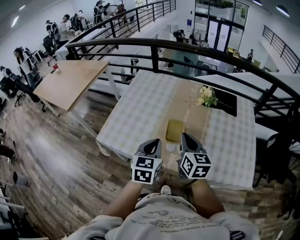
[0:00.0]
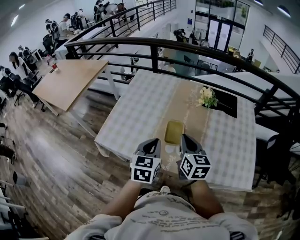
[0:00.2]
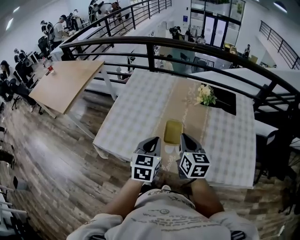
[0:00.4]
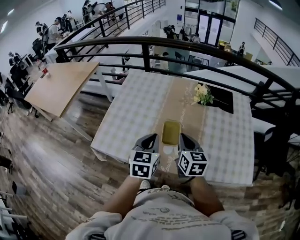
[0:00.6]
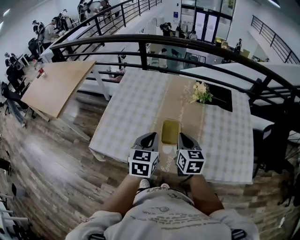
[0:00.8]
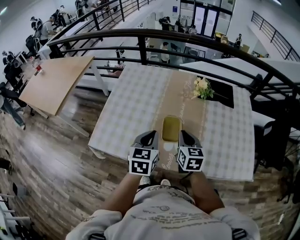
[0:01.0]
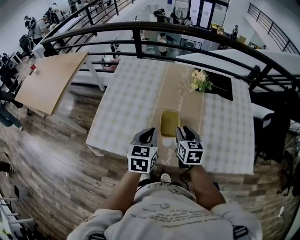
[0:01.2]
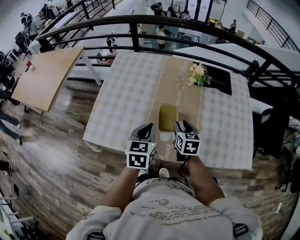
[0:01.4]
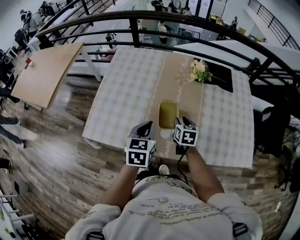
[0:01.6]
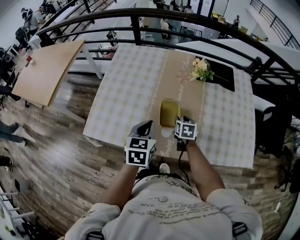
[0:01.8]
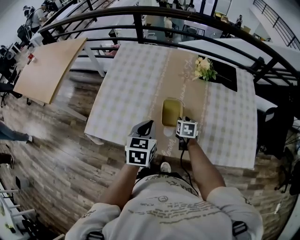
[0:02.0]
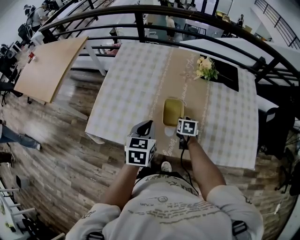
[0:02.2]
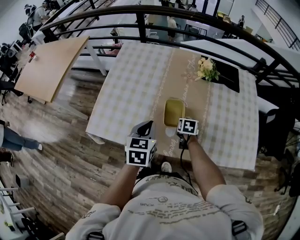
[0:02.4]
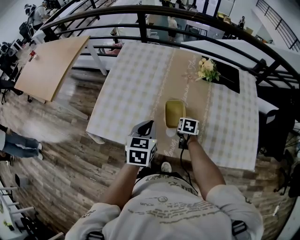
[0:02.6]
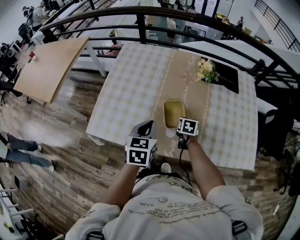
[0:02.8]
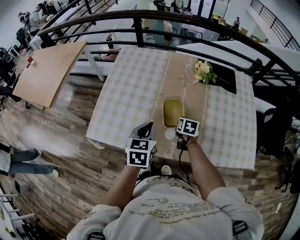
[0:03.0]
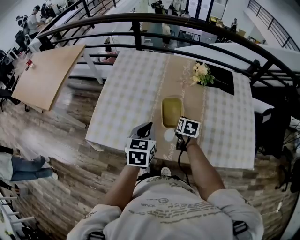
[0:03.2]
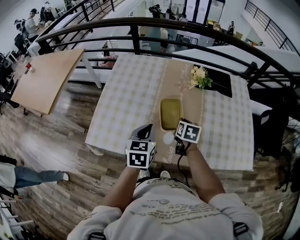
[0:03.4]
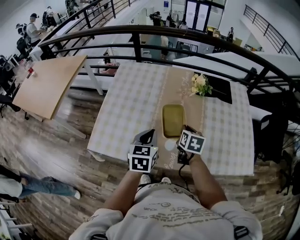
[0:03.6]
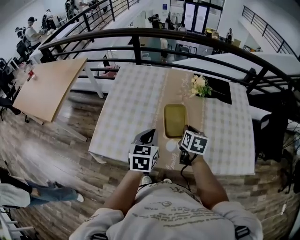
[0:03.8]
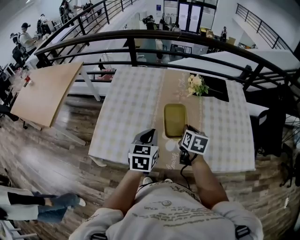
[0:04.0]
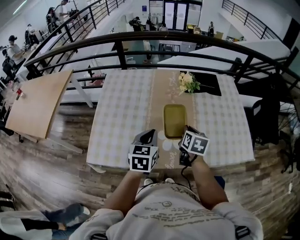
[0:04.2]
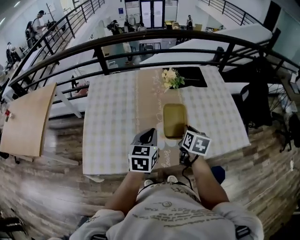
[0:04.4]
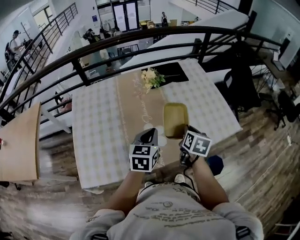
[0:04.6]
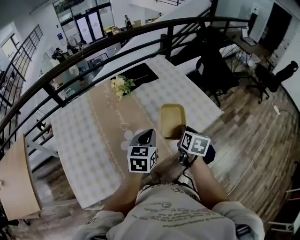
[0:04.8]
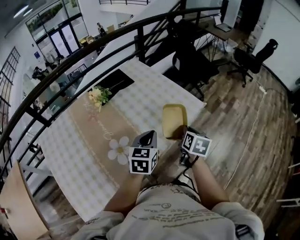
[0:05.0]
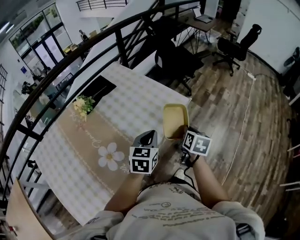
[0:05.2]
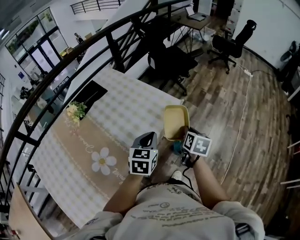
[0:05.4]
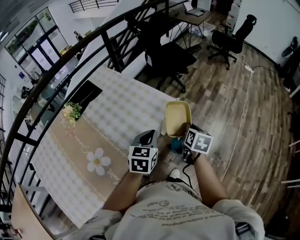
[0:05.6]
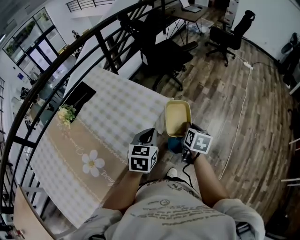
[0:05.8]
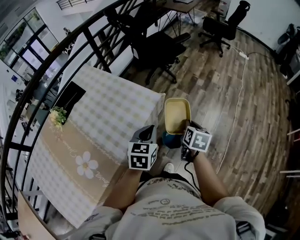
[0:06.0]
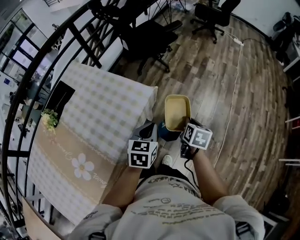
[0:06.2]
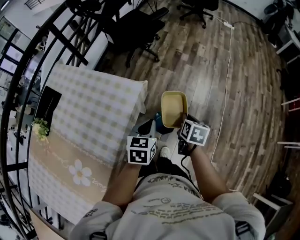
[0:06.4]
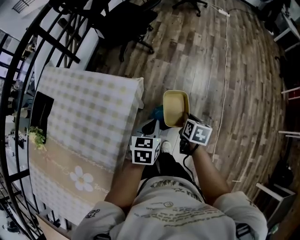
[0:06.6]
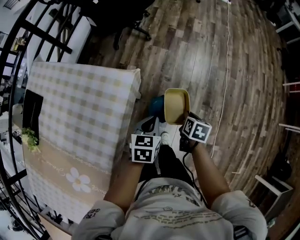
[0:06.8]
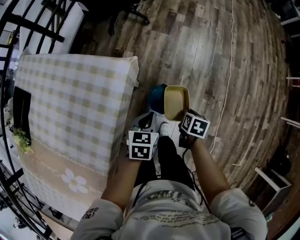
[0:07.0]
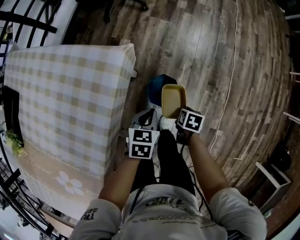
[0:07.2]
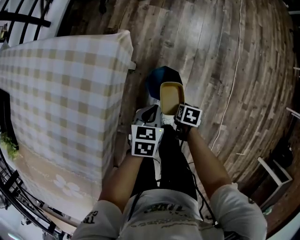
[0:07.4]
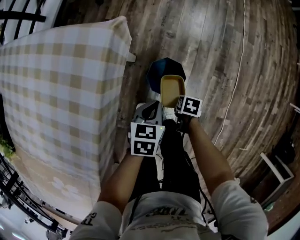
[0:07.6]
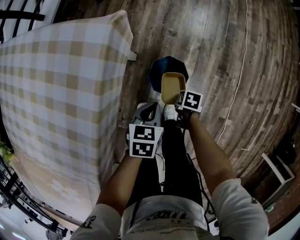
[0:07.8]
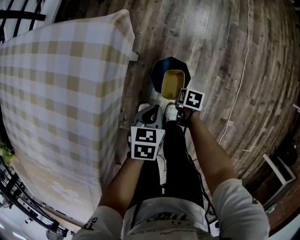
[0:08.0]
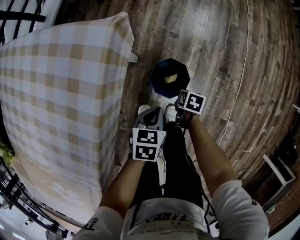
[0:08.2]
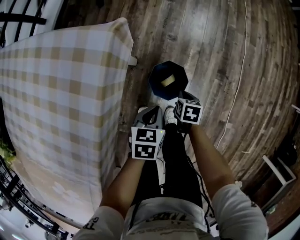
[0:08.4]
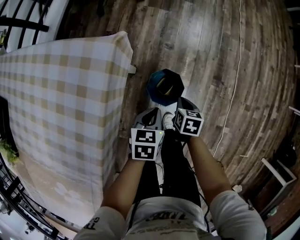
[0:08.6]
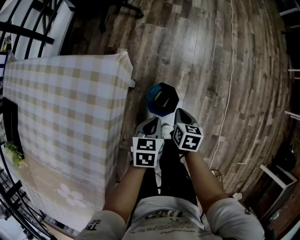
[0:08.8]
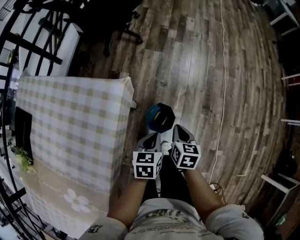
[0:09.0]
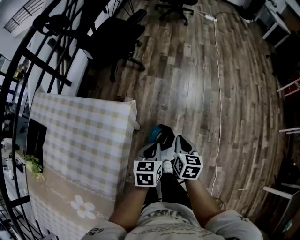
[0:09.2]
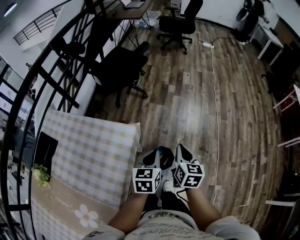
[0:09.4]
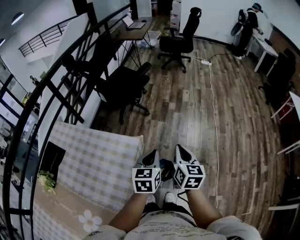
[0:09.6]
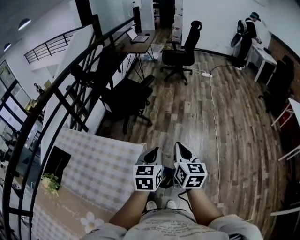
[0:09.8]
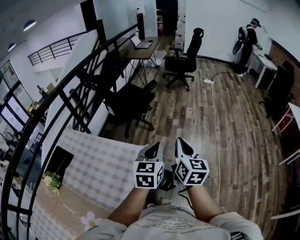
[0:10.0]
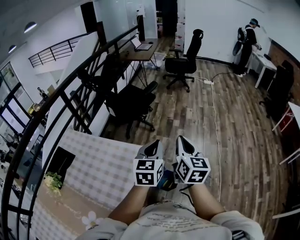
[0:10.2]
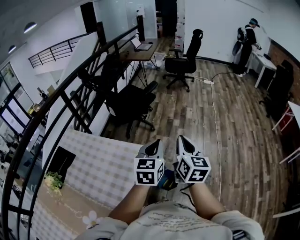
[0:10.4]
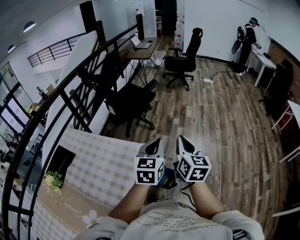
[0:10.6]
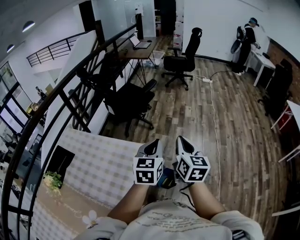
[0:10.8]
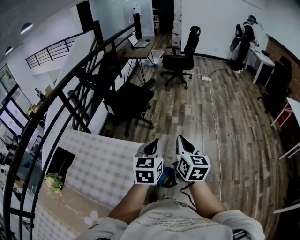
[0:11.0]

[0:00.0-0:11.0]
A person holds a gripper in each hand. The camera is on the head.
0:00.0 to 0:01.6: The left gripper heads forward and downward, covering about 10 cm, while the right gripper travels downward and forward by approximately 25 cm, rotates about 30 degrees, and opens its fingers.
0:01.6 to 0:03.2: The right gripper reaches some 10 cm downward, then returns, and closes its fingers.
0:03.2 to 0:04.8: The right gripper moves roughly 30 cm, and swivels some 50 degrees, while the left gripper ends up roughly 20 cm from where it was, and rotates roughly 40 degrees.
0:04.8 to 0:06.2: The two grippers travel together, about 40 cm. The left gripper turns by some 30 degrees, while the right gripper changes its angle by about 30 degrees.
0:06.2 to 0:07.8: Both grippers travel together downward, some 40 cm. The left gripper swivels roughly 30 degrees. The right gripper tilts its fingers roughly 30 degrees downward.
0:07.8 to 0:09.4: Both grippers travel together upward, roughly 50 cm. The right gripper tilts its fingers about 50 degrees upward, while the left gripper rotates about 20 degrees.
0:09.4 to 0:11.0: The grippers both shift forward by roughly 20 cm. The right gripper rotates roughly 20 degrees. The left gripper swivels about 20 degrees.

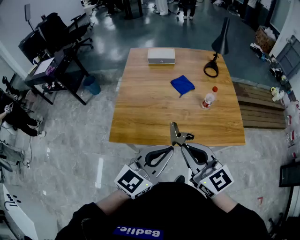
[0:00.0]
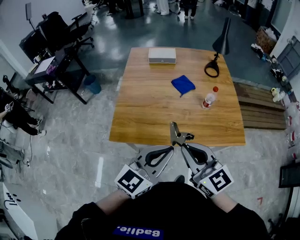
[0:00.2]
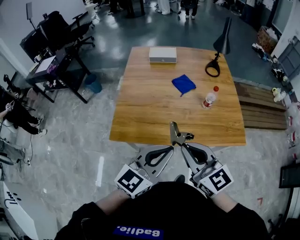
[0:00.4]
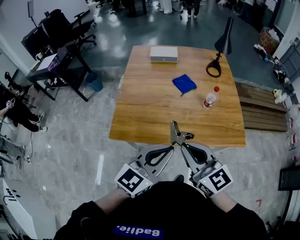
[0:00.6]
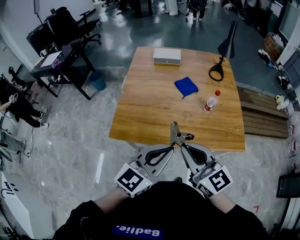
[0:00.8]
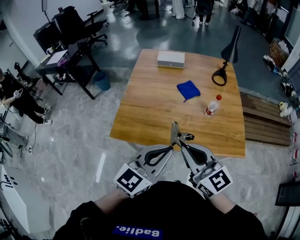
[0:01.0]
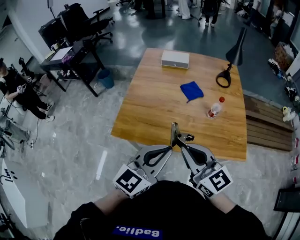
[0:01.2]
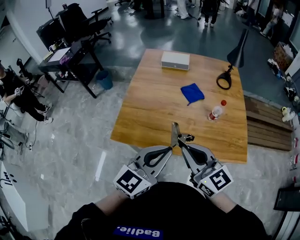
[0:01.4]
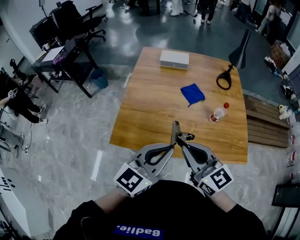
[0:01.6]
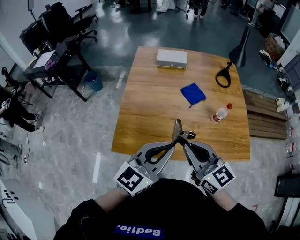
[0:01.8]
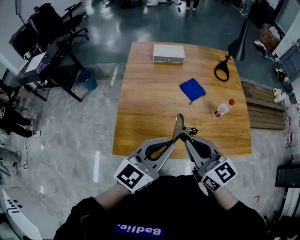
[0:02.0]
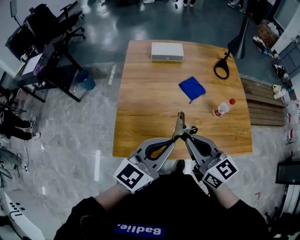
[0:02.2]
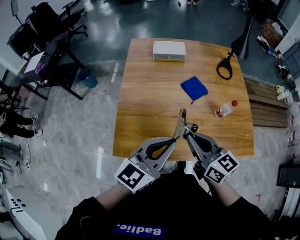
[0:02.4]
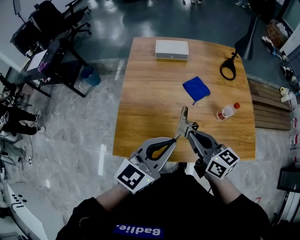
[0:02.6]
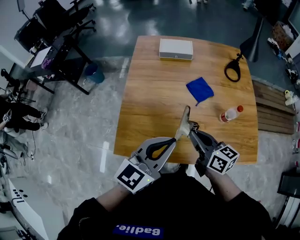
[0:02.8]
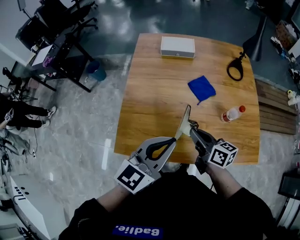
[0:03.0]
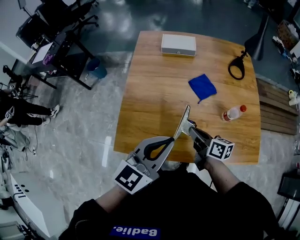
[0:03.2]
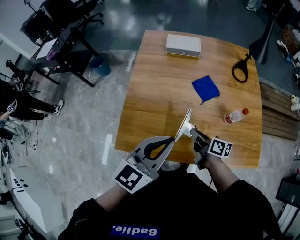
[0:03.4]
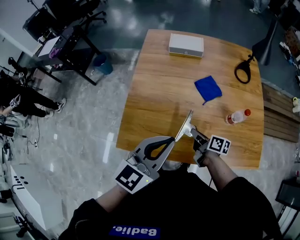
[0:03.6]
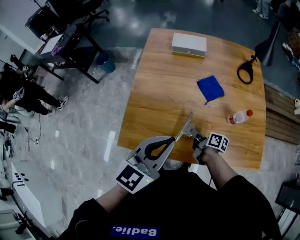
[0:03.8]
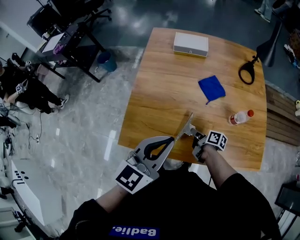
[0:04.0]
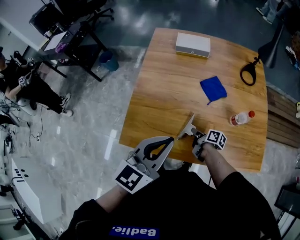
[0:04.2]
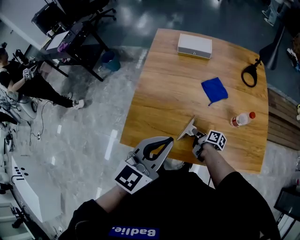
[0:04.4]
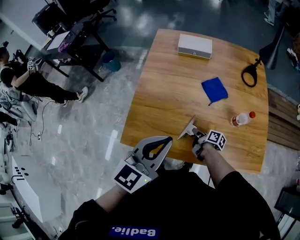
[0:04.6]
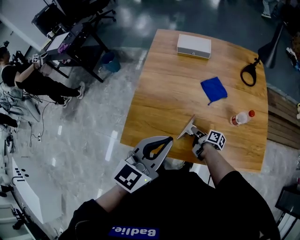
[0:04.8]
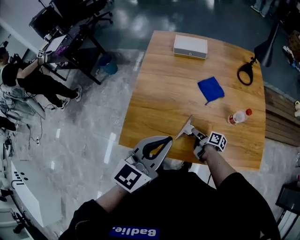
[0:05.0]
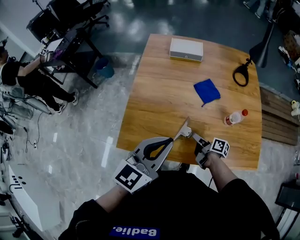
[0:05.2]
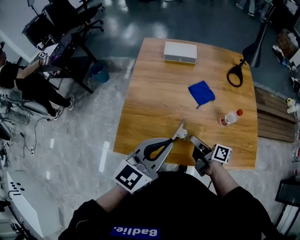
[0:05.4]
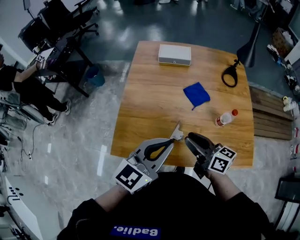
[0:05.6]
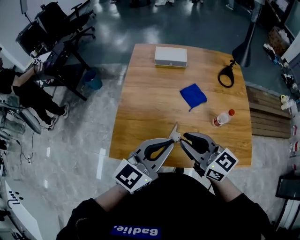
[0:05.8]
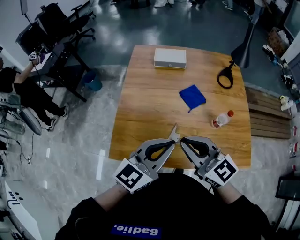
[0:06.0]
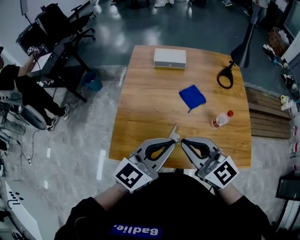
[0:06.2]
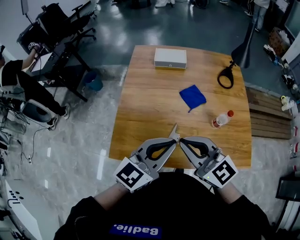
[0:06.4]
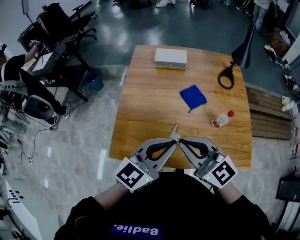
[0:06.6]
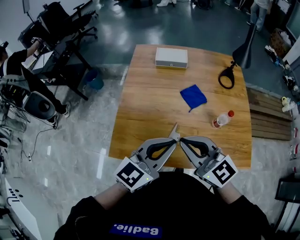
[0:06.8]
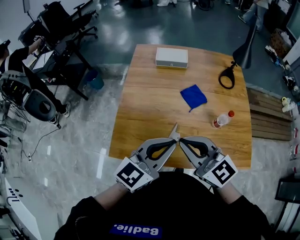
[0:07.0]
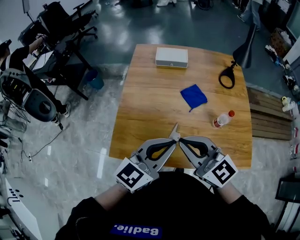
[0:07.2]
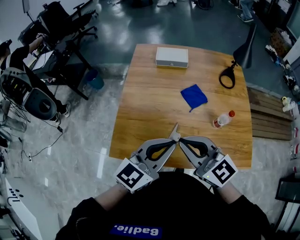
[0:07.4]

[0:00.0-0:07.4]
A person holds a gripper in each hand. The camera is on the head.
0:00.0 to 0:01.4: There are only small adjustments of the grippers.
0:01.4 to 0:03.0: The left gripper moves forward, approximately 15 cm; the right gripper moves forward and downward, approximately 25 cm, and changes its angle by roughly 40 degrees.
0:03.0 to 0:04.4: The right gripper is displaced downward by roughly 25 cm, and changes its angle by some 40 degrees.
0:04.4 to 0:06.0: The left gripper heads to the right, covering roughly 5 cm. Meanwhile the right gripper moves upward, roughly 40 cm, rolls counterclockwise, seen from behind, by approximately 80 degrees, and opens, then closes again.
0:06.0 to 0:07.4: The grippers move only a little.

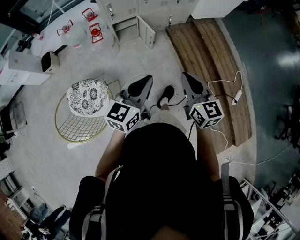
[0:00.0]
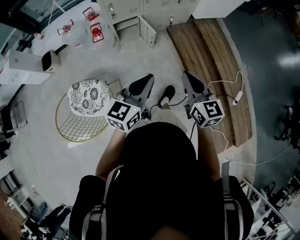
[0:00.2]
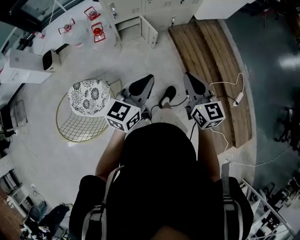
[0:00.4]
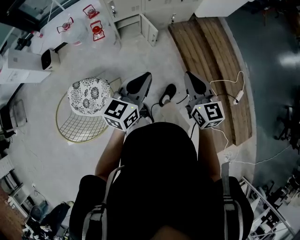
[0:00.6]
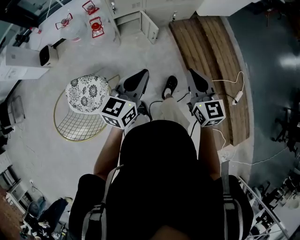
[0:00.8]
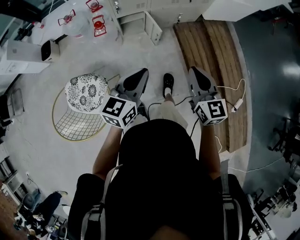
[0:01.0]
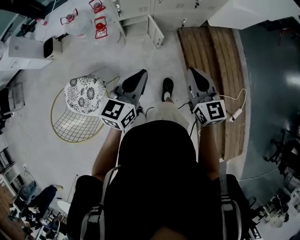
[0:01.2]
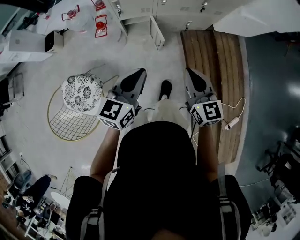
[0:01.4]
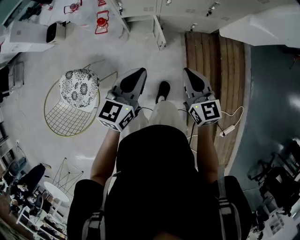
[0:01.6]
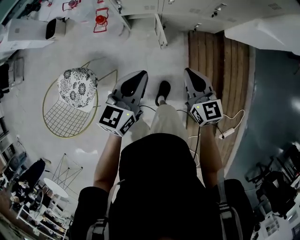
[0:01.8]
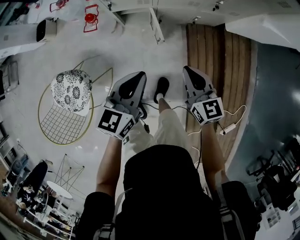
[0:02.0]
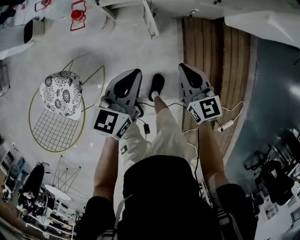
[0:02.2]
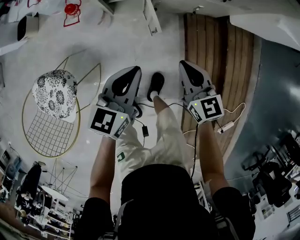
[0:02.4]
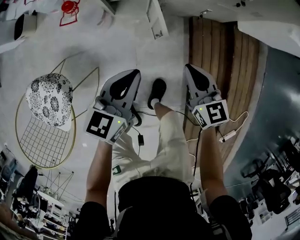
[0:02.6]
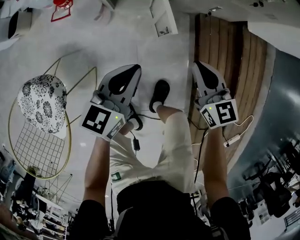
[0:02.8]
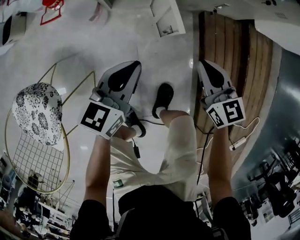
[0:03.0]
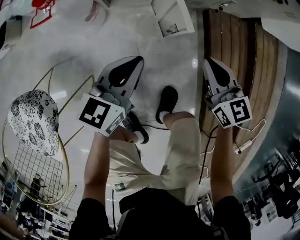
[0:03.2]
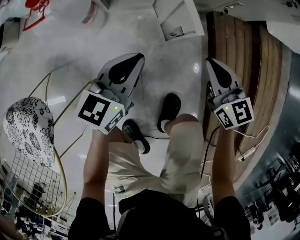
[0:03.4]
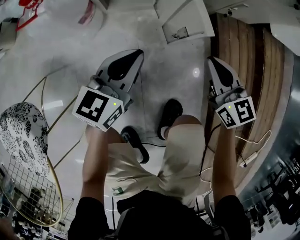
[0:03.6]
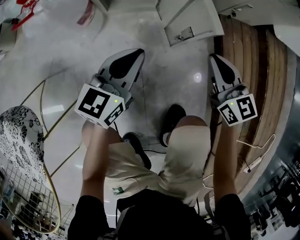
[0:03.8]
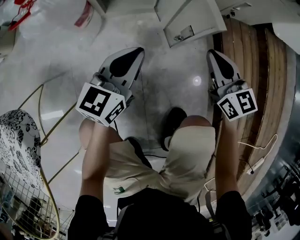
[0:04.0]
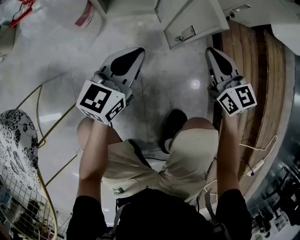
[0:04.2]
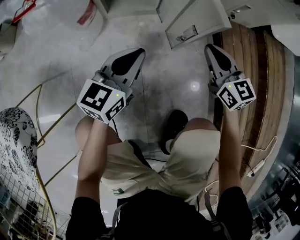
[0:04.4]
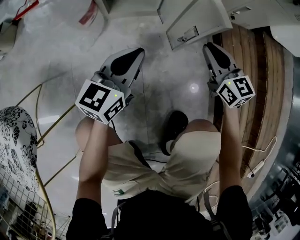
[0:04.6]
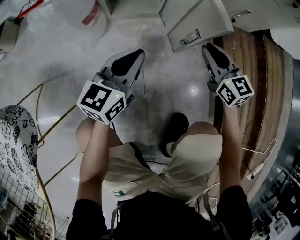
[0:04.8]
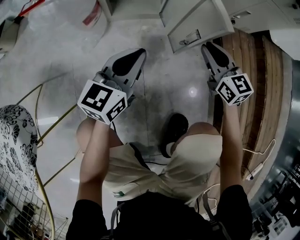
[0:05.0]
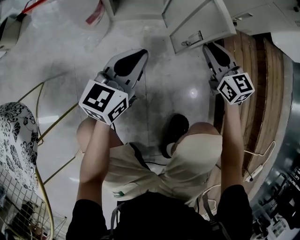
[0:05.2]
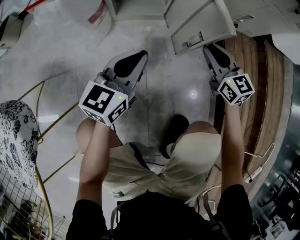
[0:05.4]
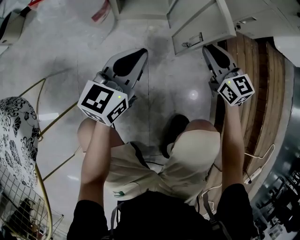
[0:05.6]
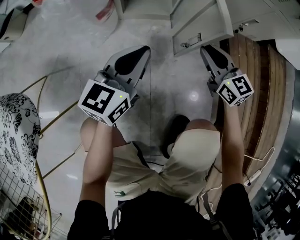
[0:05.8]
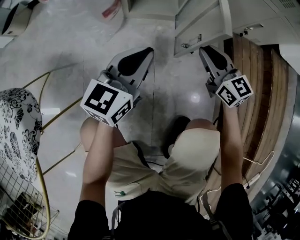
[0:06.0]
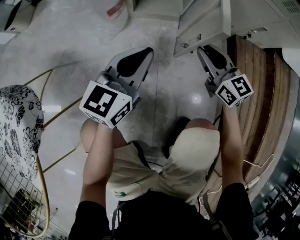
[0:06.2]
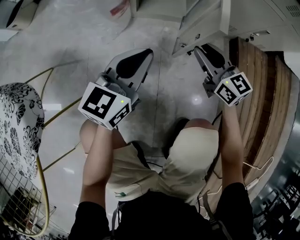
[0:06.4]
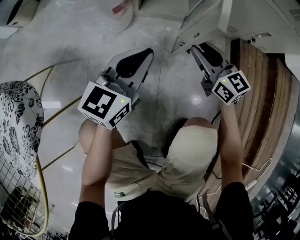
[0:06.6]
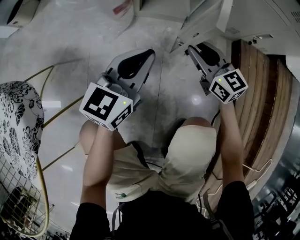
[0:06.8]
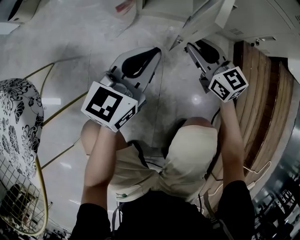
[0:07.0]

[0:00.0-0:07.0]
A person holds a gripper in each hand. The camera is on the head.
0:00.0 to 0:01.4: The grippers both shift forward by approximately 20 cm.
0:01.4 to 0:02.8: The grippers both shift downward and forward by roughly 40 cm.
0:02.8 to 0:04.2: The grippers both shift downward by some 30 cm.
0:04.2 to 0:05.6: The grippers stay close to where they were, moving slightly.
0:05.6 to 0:07.0: The right gripper moves to the left, approximately 15 cm.
